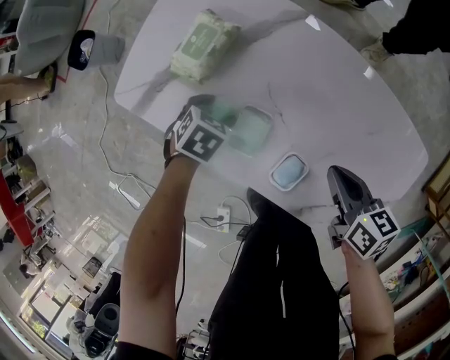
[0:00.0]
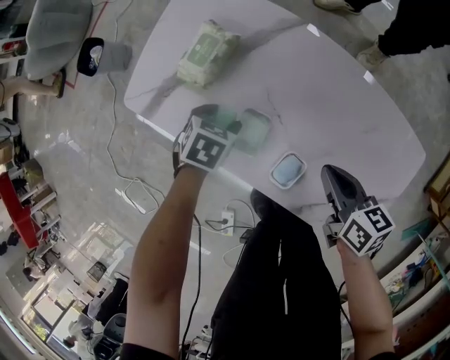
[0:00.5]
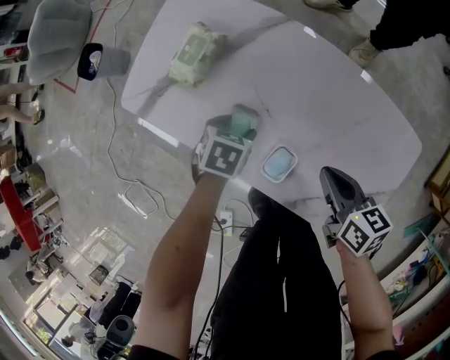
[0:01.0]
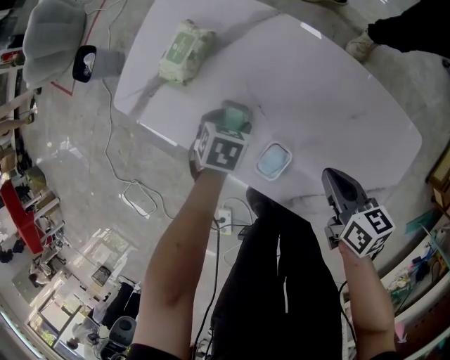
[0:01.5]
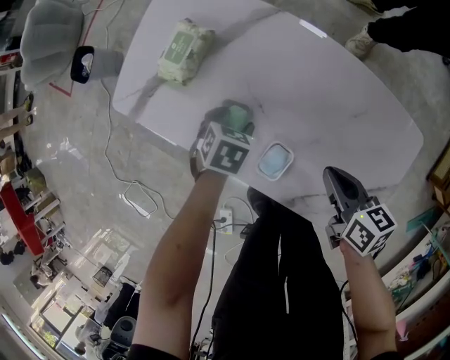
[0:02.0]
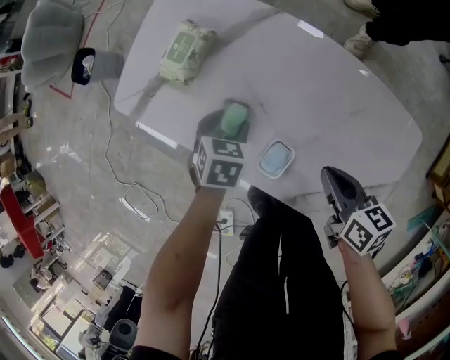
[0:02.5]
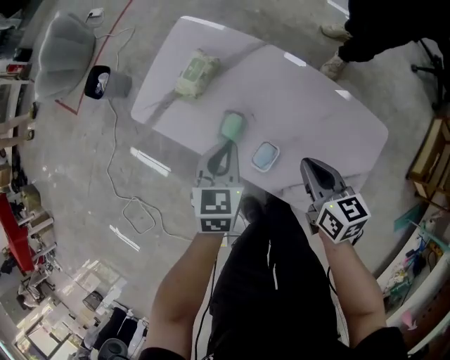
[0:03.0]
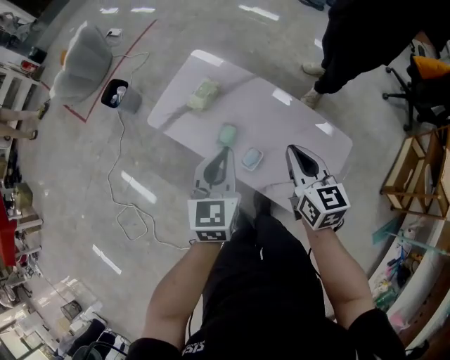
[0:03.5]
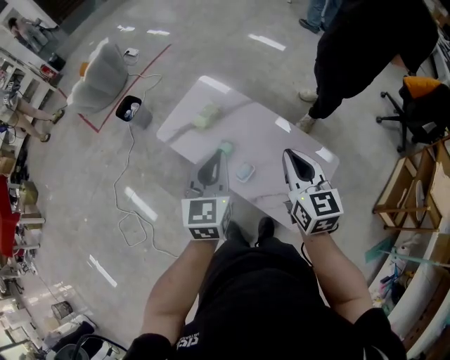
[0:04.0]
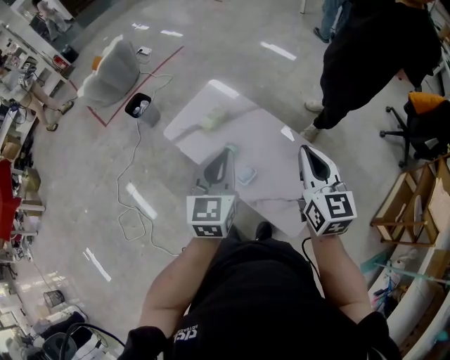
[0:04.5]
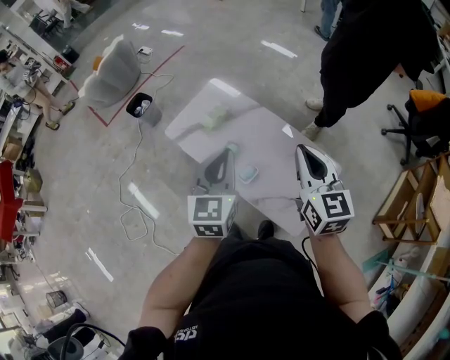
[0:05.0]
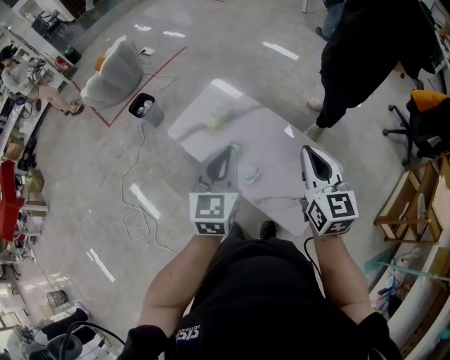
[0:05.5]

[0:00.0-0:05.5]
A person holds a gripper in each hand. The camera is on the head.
0:00.0 to 0:02.0: The left gripper moves to the right, about 10 cm. The right gripper ends up roughly 5 cm from where it was.
0:02.0 to 0:03.5: Both grippers travel together upward, approximately 35 cm. The left gripper angles its fingers upward, by approximately 50 degrees, and closes. The right gripper rotates approximately 40 degrees.
0:03.5 to 0:05.5: Both grippers travel together upward, roughly 15 cm.

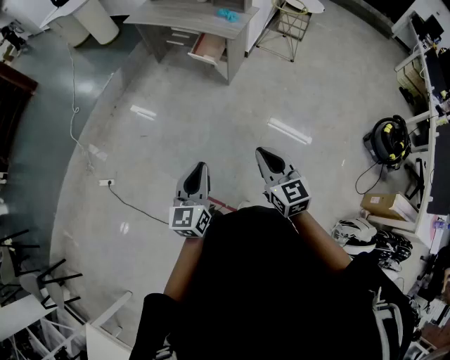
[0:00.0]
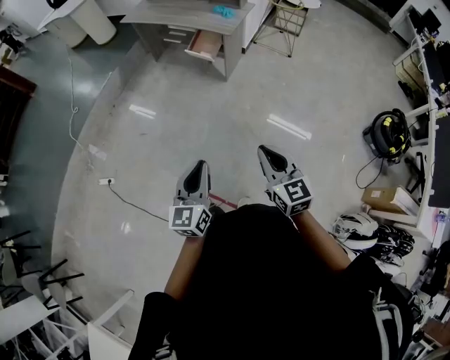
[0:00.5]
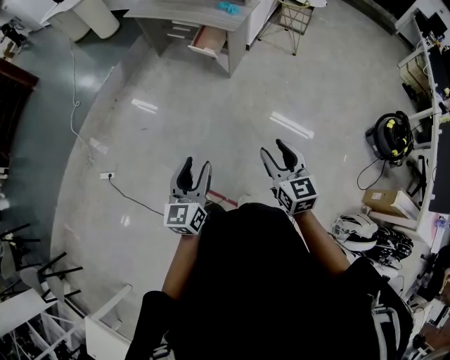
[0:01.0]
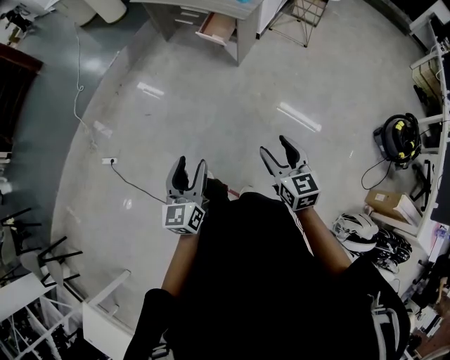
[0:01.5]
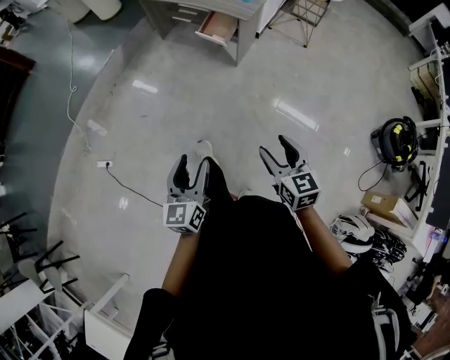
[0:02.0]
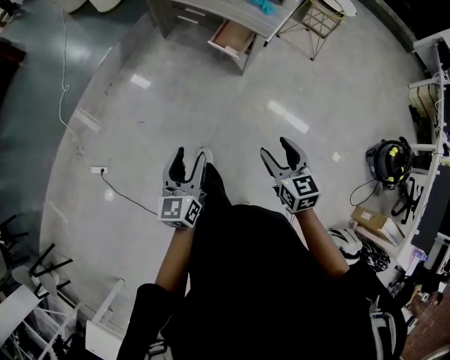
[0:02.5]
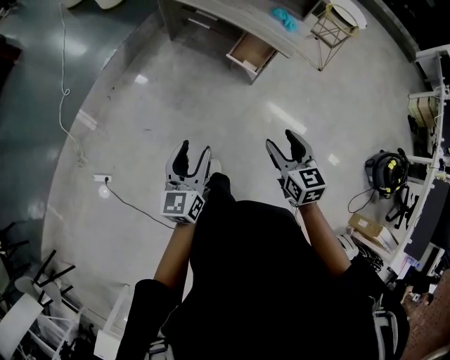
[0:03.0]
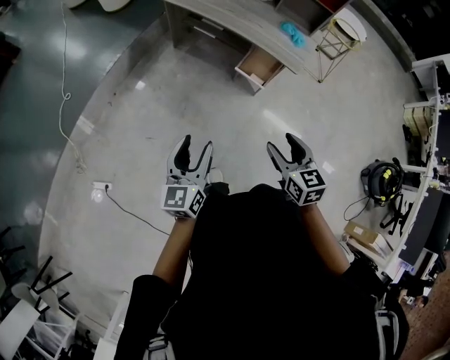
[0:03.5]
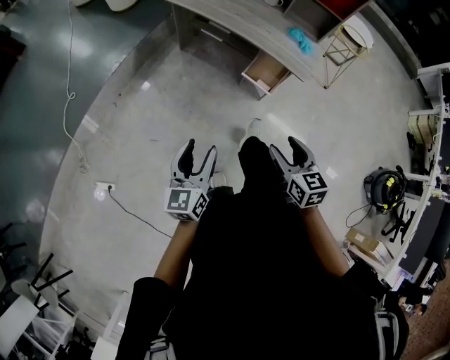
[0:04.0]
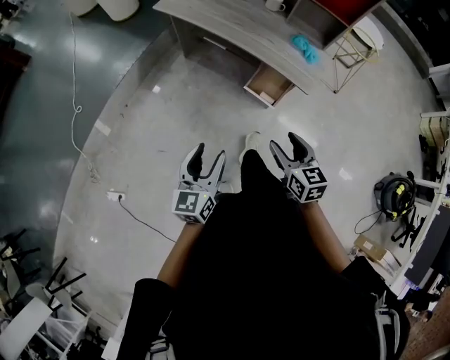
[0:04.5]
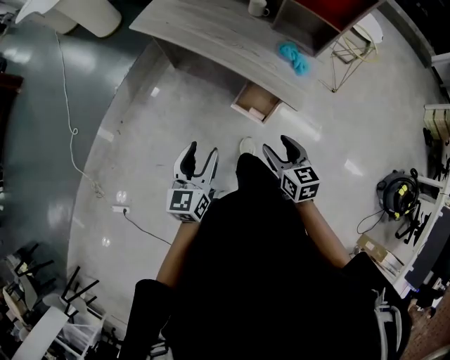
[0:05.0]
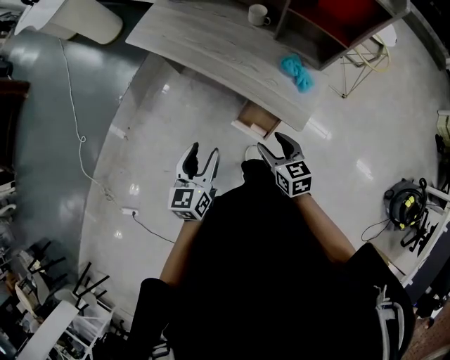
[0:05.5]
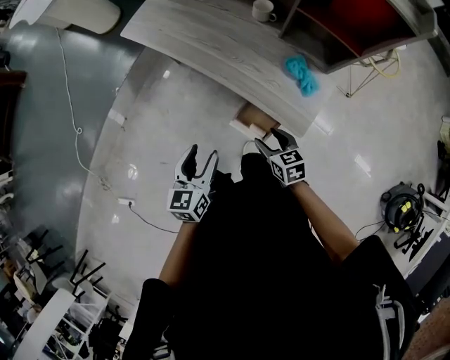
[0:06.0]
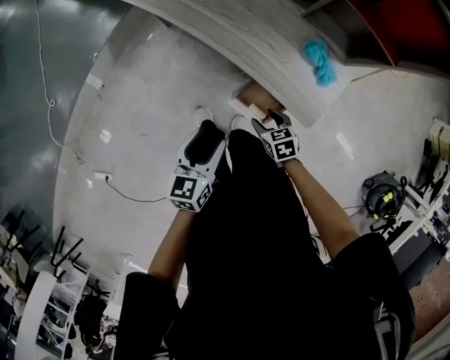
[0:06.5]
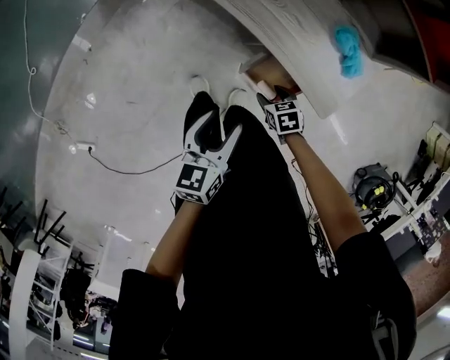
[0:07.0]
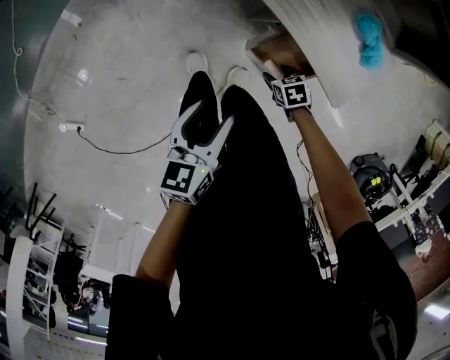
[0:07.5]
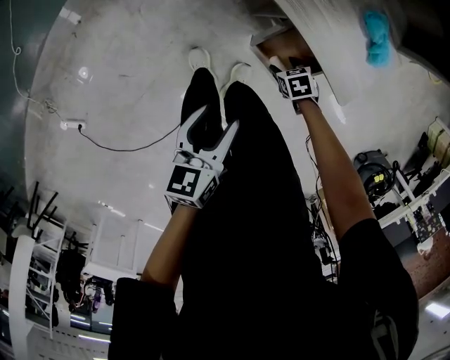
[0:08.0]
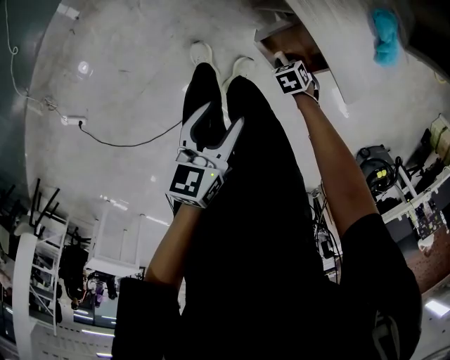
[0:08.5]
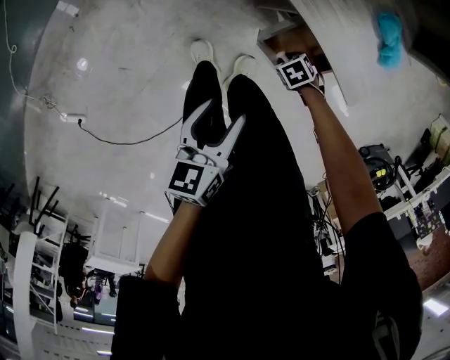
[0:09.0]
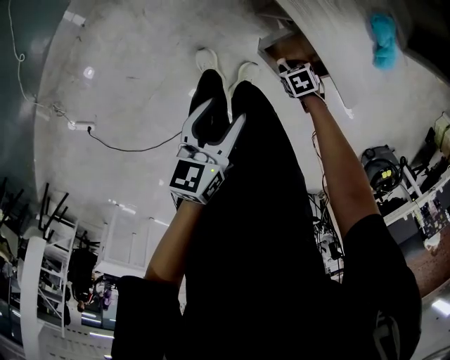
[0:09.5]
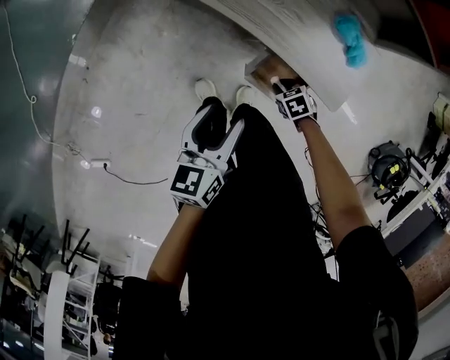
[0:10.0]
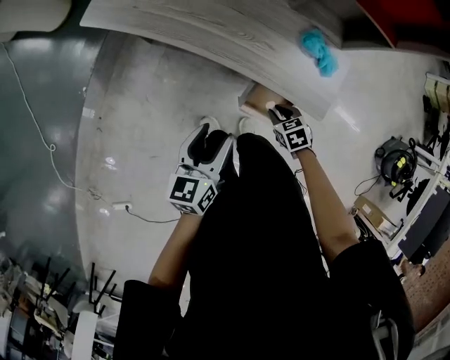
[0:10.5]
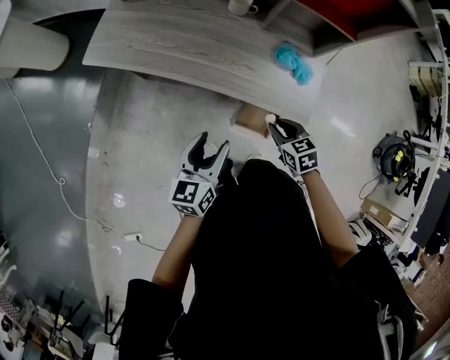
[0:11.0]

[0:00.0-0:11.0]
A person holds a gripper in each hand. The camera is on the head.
0:00.0 to 0:02.0: The left gripper goes approximately 5 cm forward, and opens. Meanwhile the right gripper shifts about 10 cm downward and forward, and opens its fingers.
0:02.0 to 0:03.5: The two grippers travel together, forward and to the left, approximately 50 cm.
0:03.5 to 0:05.5: The two grippers travel together, forward and to the right, about 40 cm.
0:05.5 to 0:07.5: The left gripper goes approximately 20 cm downward, and changes its angle by approximately 20 degrees; the right gripper shifts roughly 40 cm downward, and points its fingers approximately 40 degrees further downward.
0:07.5 to 0:09.0: The right gripper changes its angle by roughly 20 degrees, and closes up.
0:09.0 to 0:11.0: The left gripper goes about 15 cm upward, and turns by roughly 30 degrees; the right gripper goes some 35 cm upward, and turns by about 50 degrees.

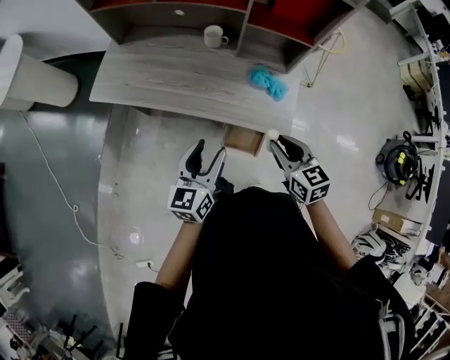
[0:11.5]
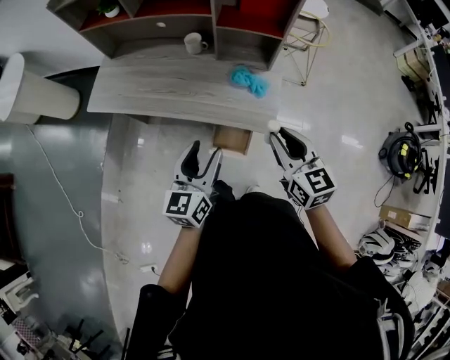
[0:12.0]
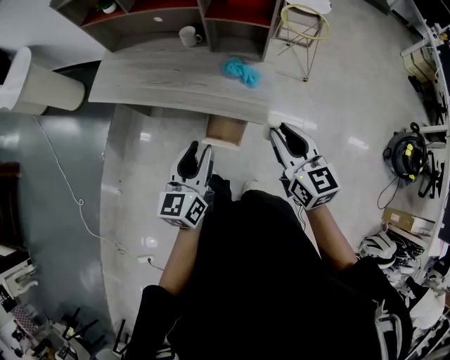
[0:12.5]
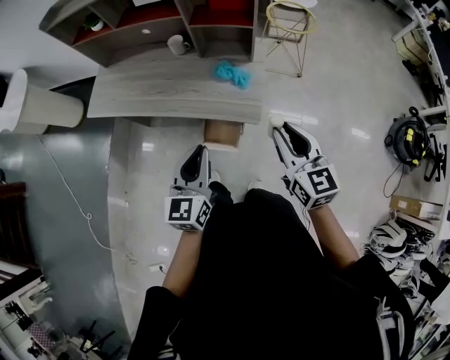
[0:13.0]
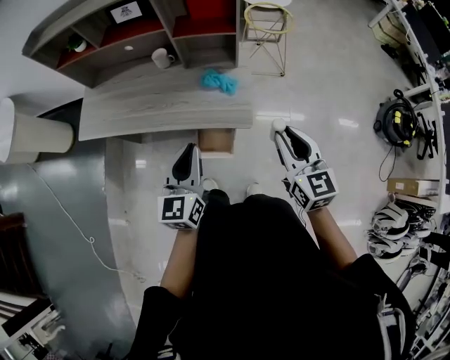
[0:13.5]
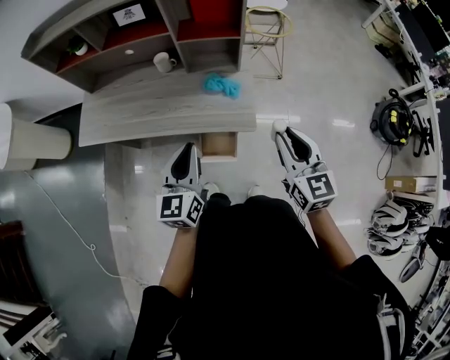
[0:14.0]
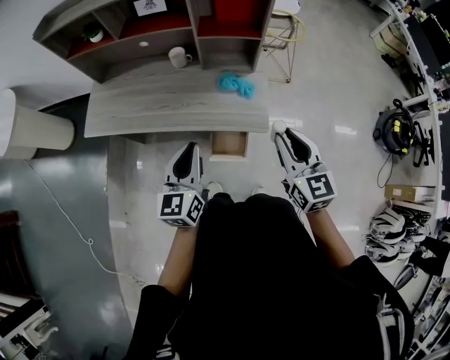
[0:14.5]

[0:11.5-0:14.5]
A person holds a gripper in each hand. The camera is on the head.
0:11.5 to 0:13.0: The left gripper travels to the right, backward and upward by approximately 20 cm, and closes up; the right gripper heads to the right, upward and backward, covering roughly 20 cm.
0:13.0 to 0:14.5: The left gripper travels to the left and forward by about 10 cm; the right gripper goes about 10 cm to the left.

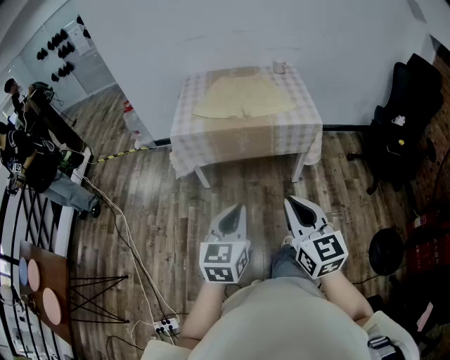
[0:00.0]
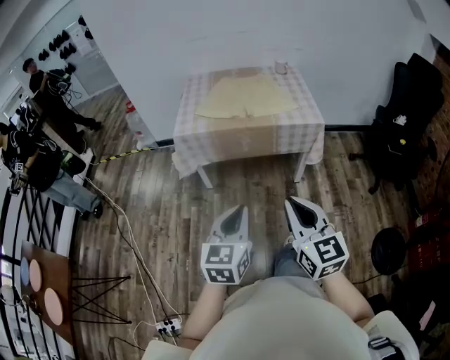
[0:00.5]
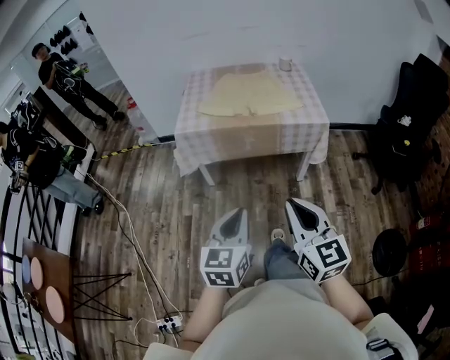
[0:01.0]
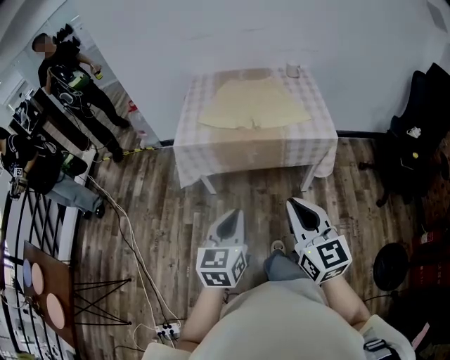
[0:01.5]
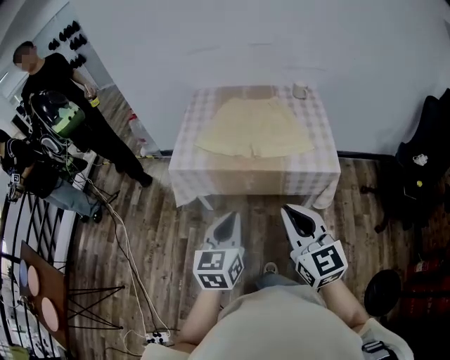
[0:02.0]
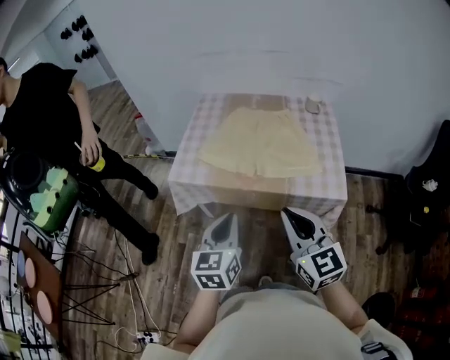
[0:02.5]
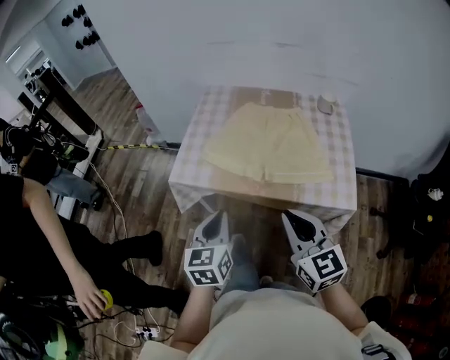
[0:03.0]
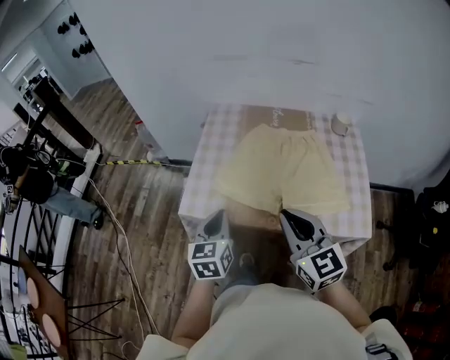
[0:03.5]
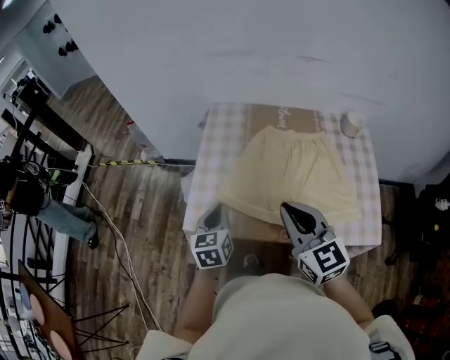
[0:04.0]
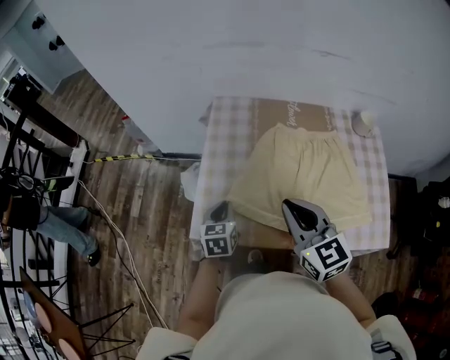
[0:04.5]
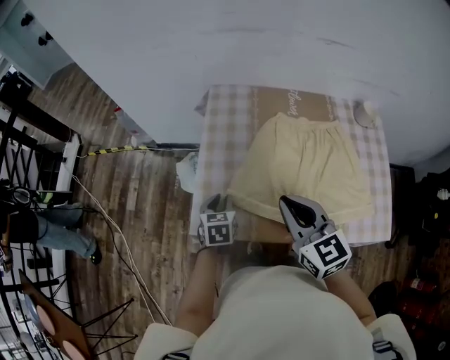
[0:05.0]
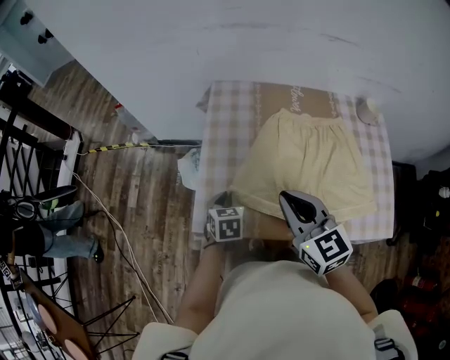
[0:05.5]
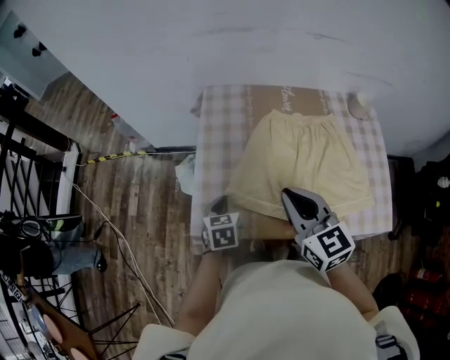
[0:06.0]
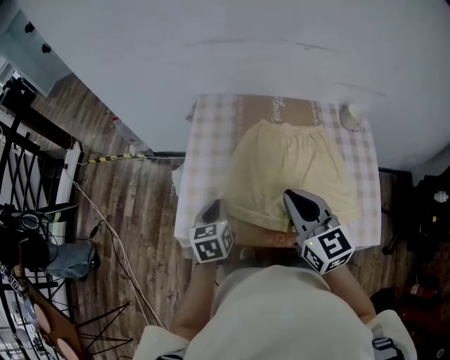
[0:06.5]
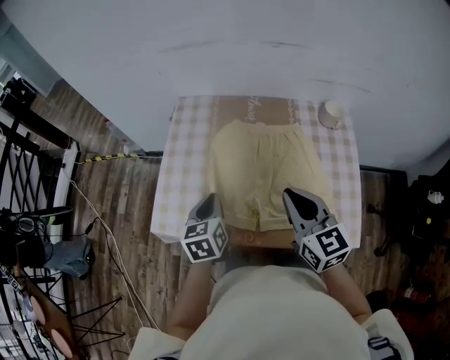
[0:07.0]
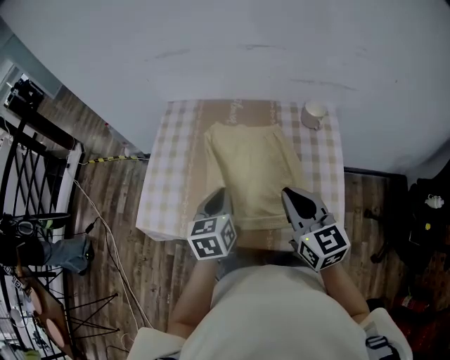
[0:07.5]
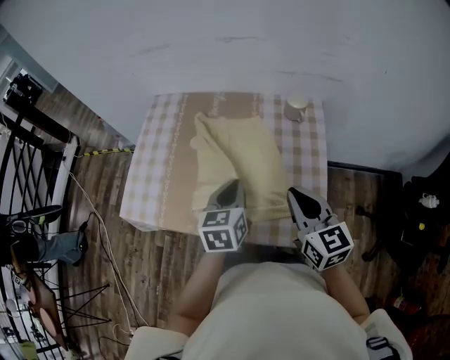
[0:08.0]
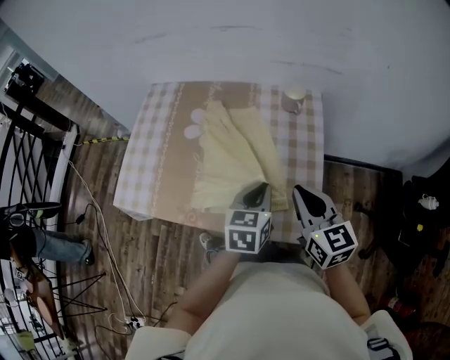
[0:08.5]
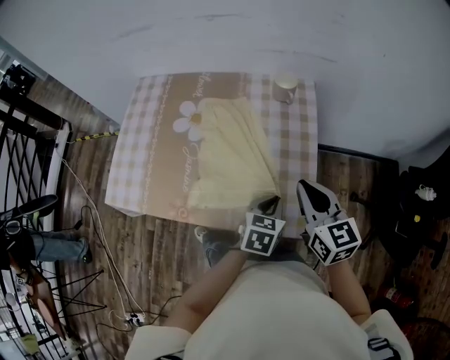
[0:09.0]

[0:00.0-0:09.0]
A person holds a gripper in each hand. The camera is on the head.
0:00.0 to 0:02.0: Both grippers travel together forward, approximately 20 cm.
0:02.0 to 0:04.5: The pair of grippers is taken forward, some 40 cm. The left gripper is displaced downward by approximately 20 cm, and rotates approximately 20 degrees.
0:04.5 to 0:07.0: The right gripper is displaced to the right by some 15 cm, while the left gripper is displaced to the right and upward by some 15 cm.
0:07.0 to 0:09.0: The right gripper goes approximately 25 cm to the right. Meanwhile the left gripper heads to the right, covering approximately 40 cm, and changes its angle by approximately 30 degrees.
